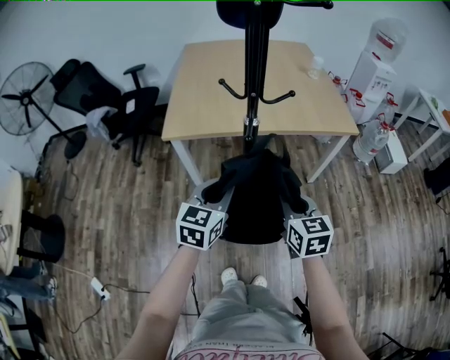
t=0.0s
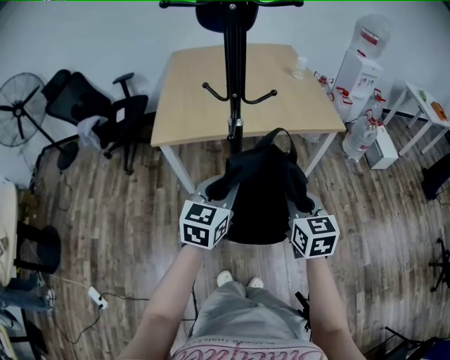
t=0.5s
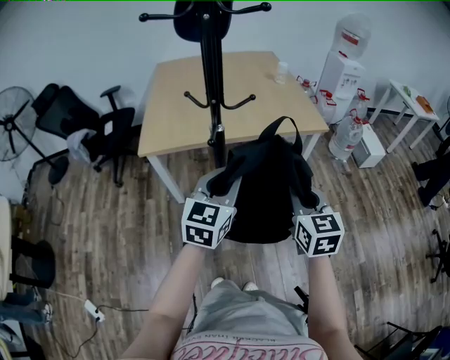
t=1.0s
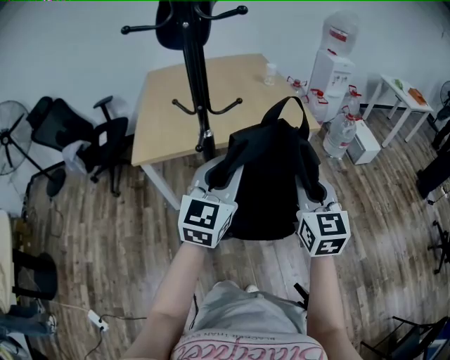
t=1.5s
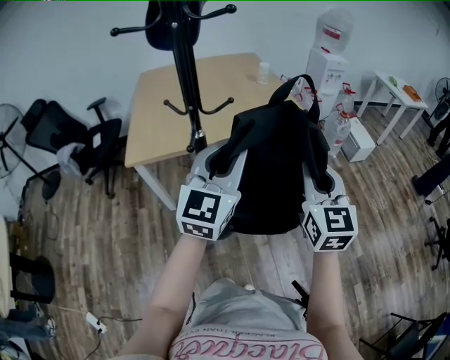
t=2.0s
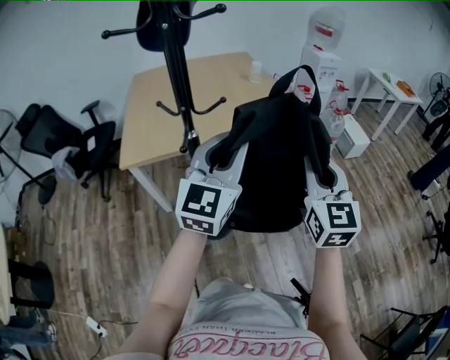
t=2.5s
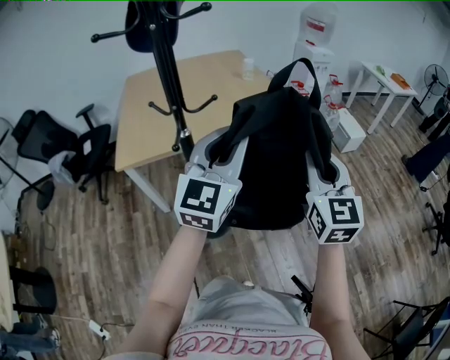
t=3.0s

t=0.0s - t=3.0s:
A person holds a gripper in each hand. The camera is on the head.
t=0.0s - t=1.5s: The two grippers go approximately 20 cm to the right and upward. The right gripper changes its angle by approximately 30 degrees. Meanwhile the left gripper swivels roughly 20 degrees.
t=1.5s - t=3.0s: Both grippers move upward and to the right, some 10 cm.

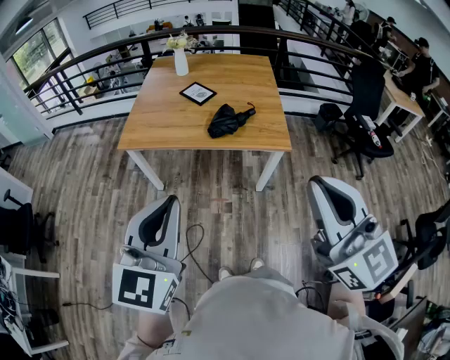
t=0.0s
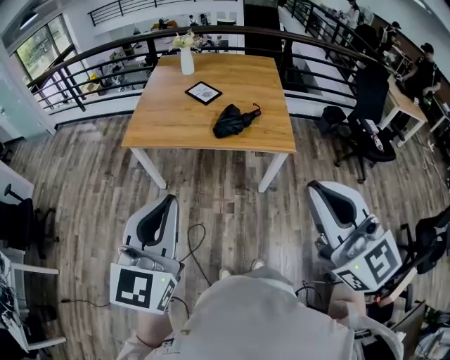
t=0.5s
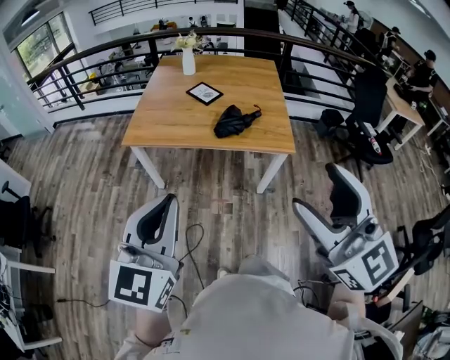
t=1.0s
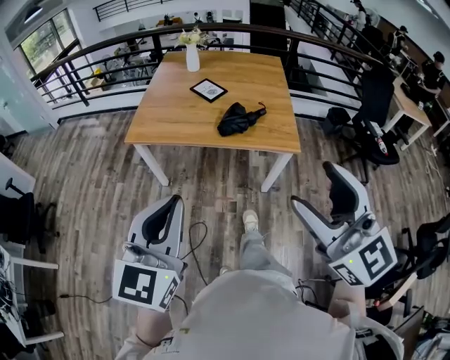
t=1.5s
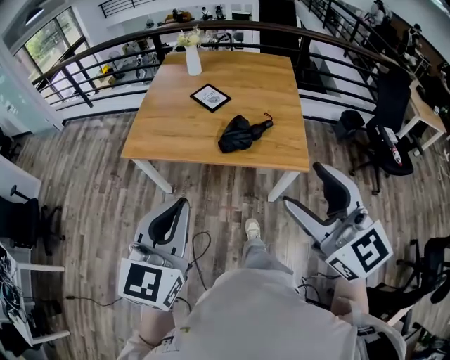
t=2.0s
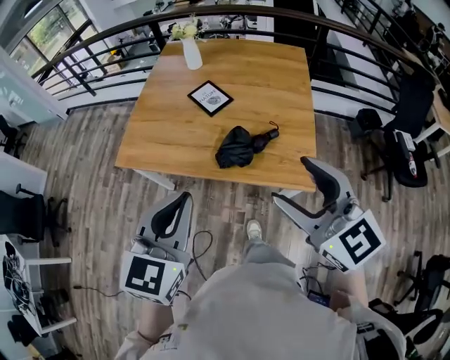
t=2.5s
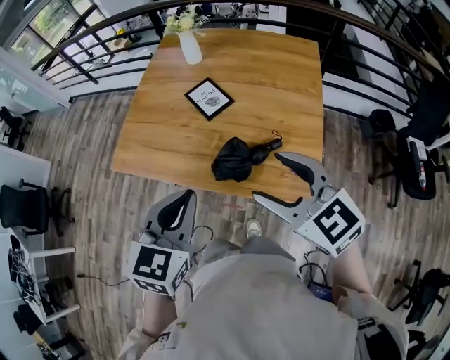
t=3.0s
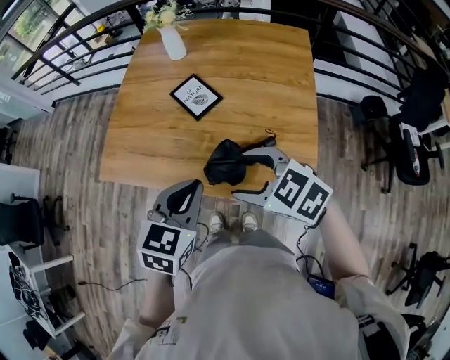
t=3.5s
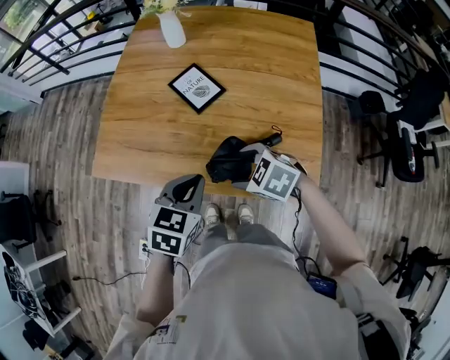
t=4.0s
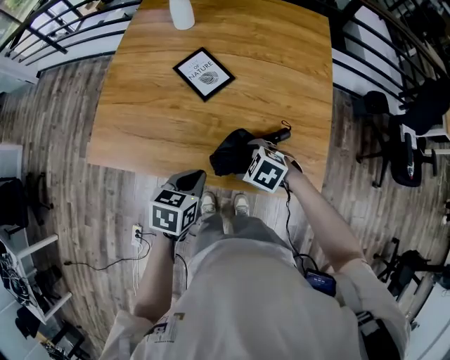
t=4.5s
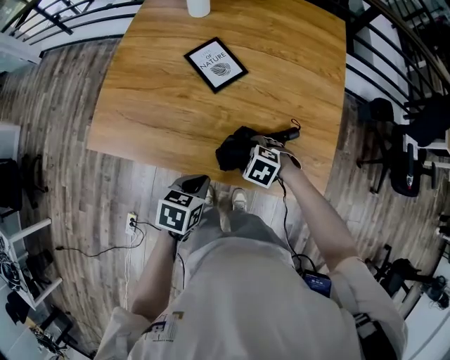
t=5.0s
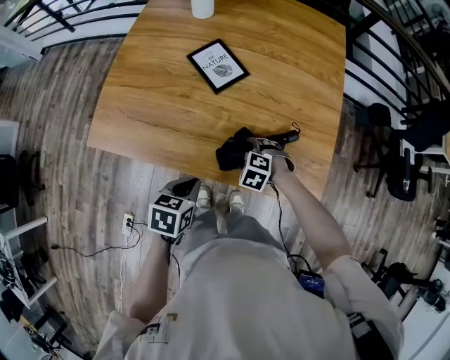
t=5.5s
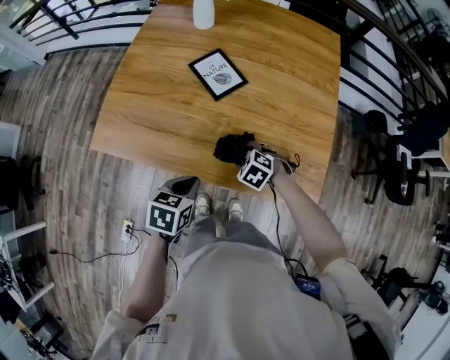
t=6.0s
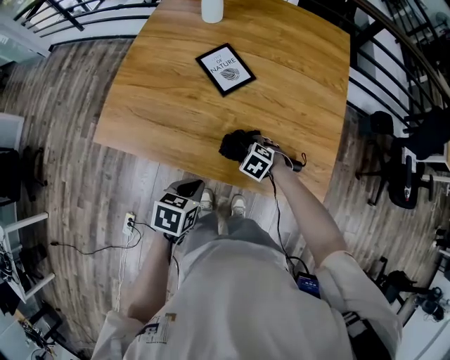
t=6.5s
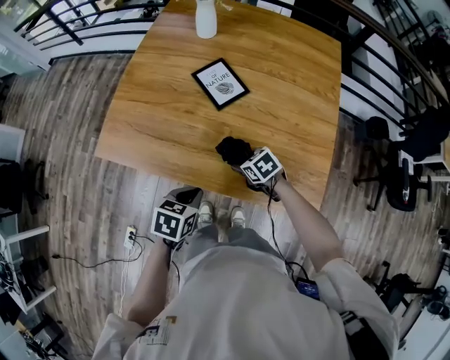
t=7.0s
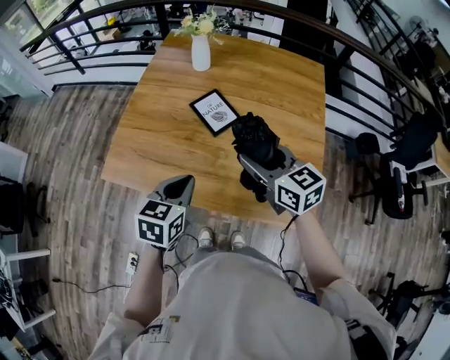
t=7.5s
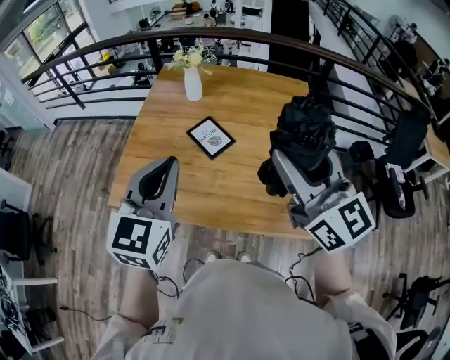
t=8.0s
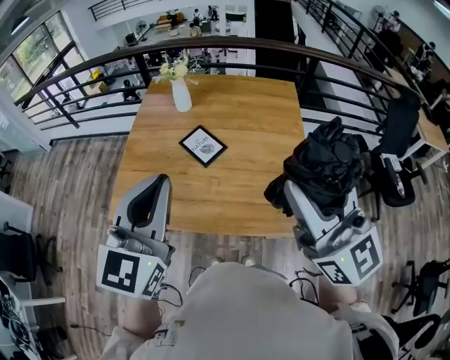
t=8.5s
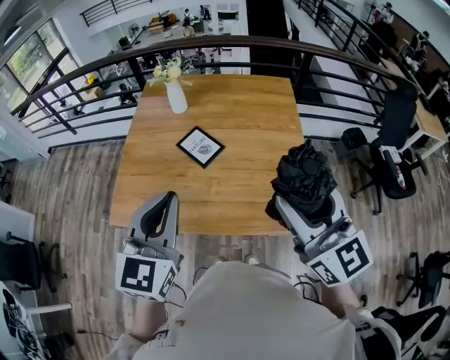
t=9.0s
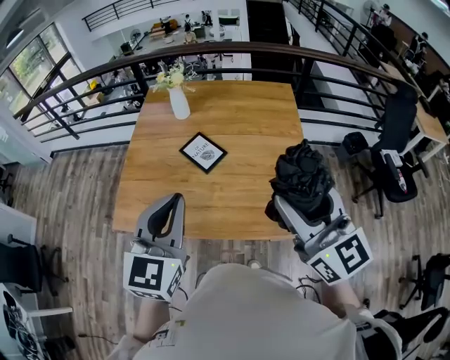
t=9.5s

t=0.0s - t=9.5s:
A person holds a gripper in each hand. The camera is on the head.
t=0.0s - t=2.0s: The grippers both shift forward by roughly 15 cm. The right gripper opens its fingers.
t=2.0s - t=4.0s: The left gripper shifts about 40 cm forward, downward and to the right, and tilts its fingers some 30 degrees downward; the right gripper travels forward and downward by some 50 cm, and angles its fingers downward, by approximately 50 degrees.
t=4.0s - t=5.5s: Both grippers move downward, approximately 15 cm. The right gripper swivels some 30 degrees, while the left gripper swivels about 20 degrees.
t=5.5s - t=7.5s: The left gripper moves upward, some 15 cm, and turns by about 20 degrees, while the right gripper travels upward by some 35 cm, and points its fingers about 60 degrees further upward.
t=7.5s - t=9.5s: The right gripper shifts roughly 25 cm upward and backward, and turns by roughly 30 degrees; the left gripper is displaced upward by about 20 cm, and swivels roughly 30 degrees.

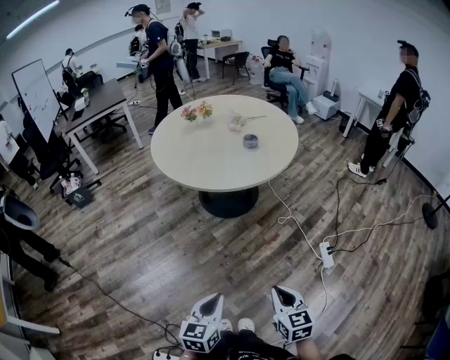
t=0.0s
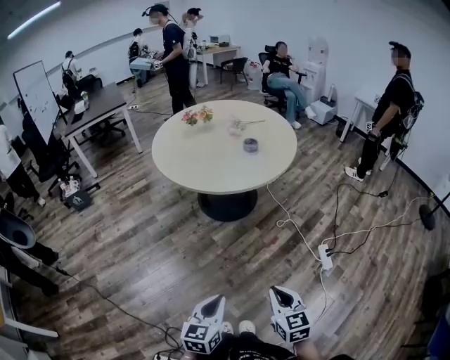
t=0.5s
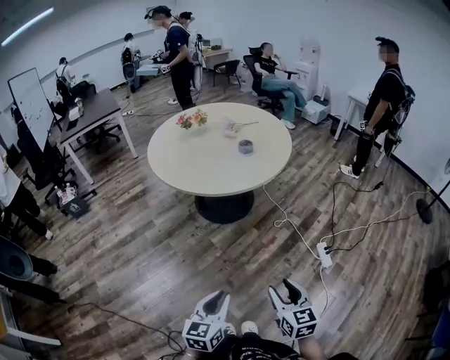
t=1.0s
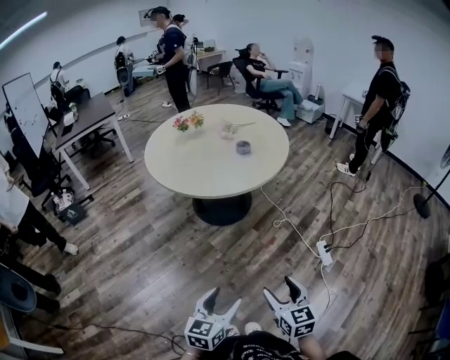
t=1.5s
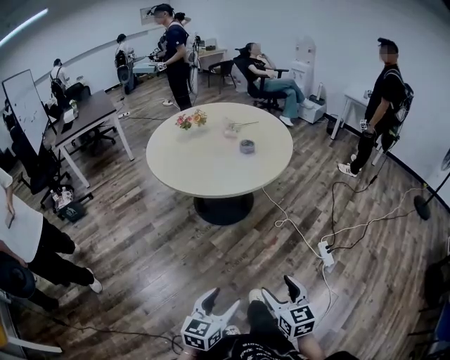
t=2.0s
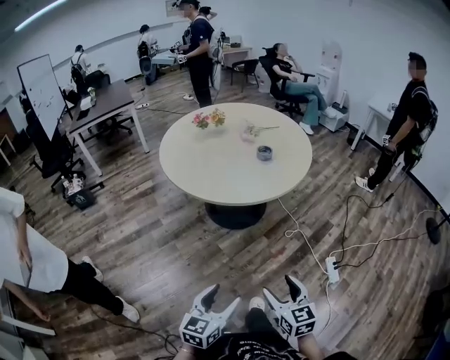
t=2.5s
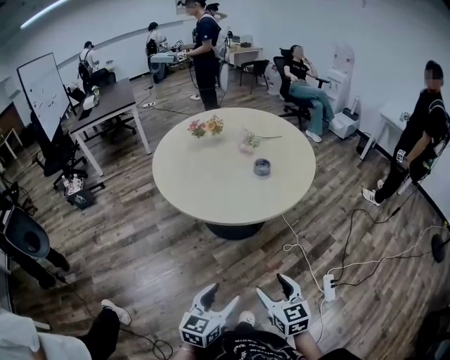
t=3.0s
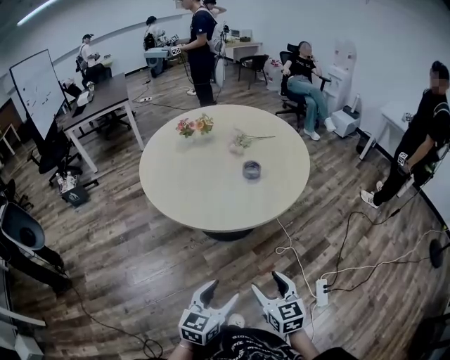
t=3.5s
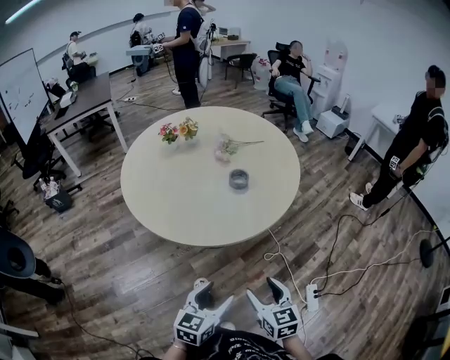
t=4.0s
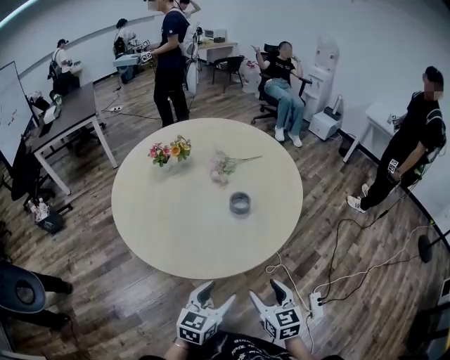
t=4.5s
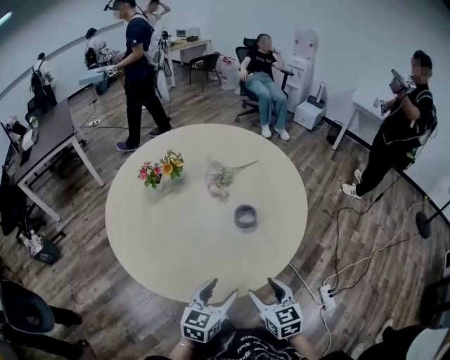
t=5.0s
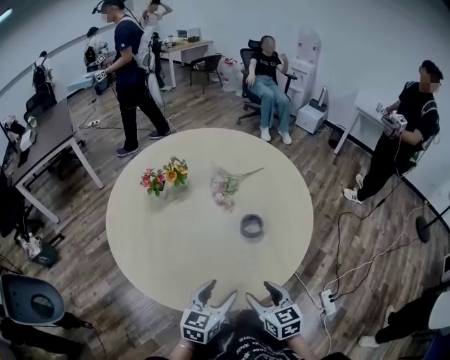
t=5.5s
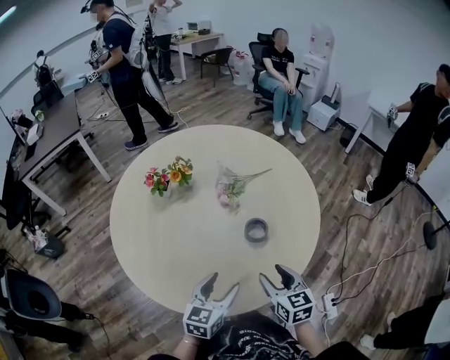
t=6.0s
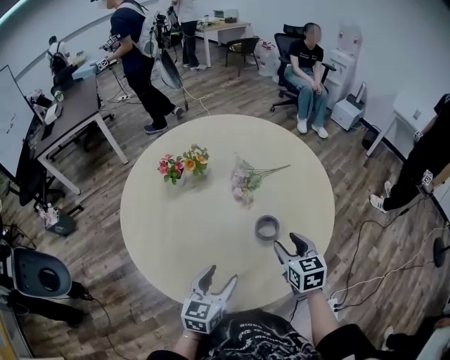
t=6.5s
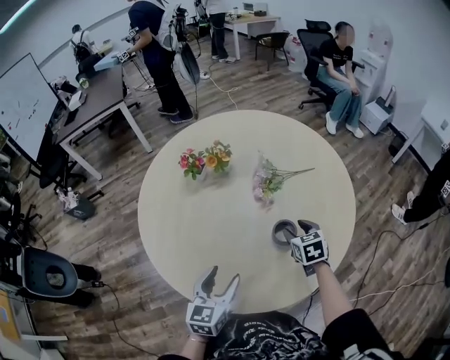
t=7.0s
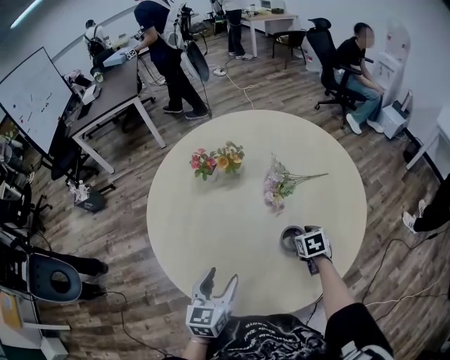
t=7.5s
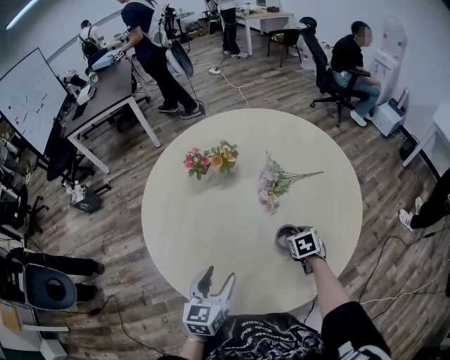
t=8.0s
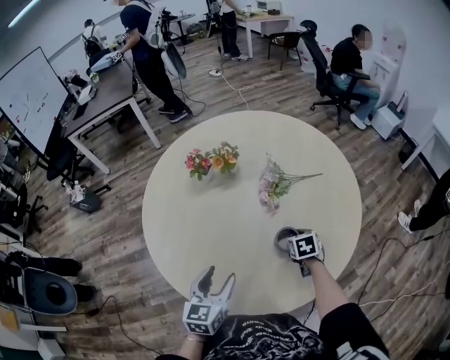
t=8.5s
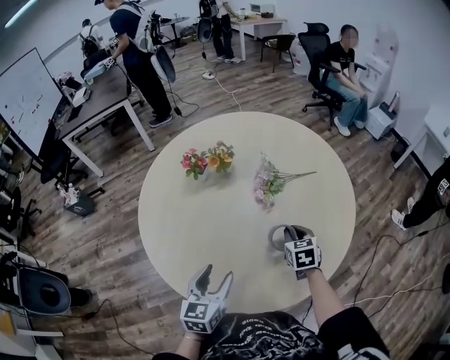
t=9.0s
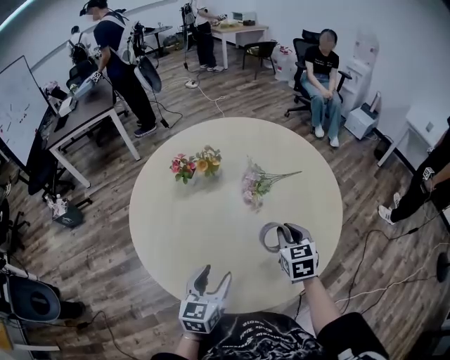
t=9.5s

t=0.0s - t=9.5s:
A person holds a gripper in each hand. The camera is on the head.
t=0.0s - t=2.0s: The right gripper travels to the left by about 5 cm, and opens its fingers. Meanwhile the left gripper opens up.
t=2.0s - t=4.0s: The two grippers go approximately 35 cm forward.
t=4.0s - t=5.5s: The two grippers go some 30 cm forward and to the left.
t=5.5s - t=7.5s: The right gripper shifts about 30 cm forward, and turns by some 30 degrees; the left gripper travels forward by some 10 cm, and changes its angle by approximately 40 degrees.
t=7.5s - t=9.5s: The right gripper is displaced upward and backward by some 15 cm, turns by some 30 degrees, and closes.

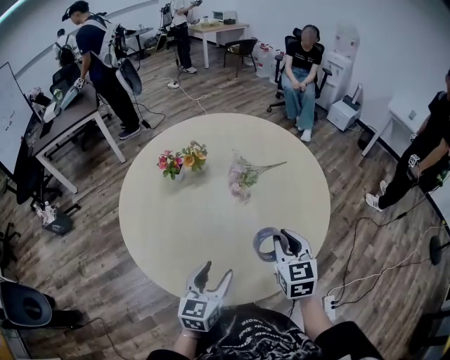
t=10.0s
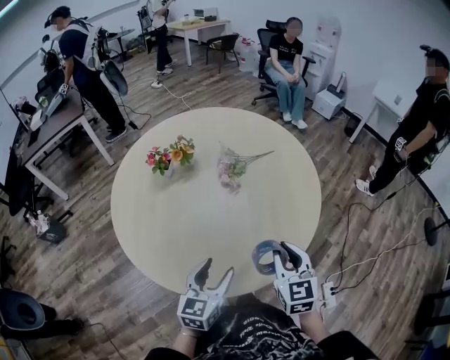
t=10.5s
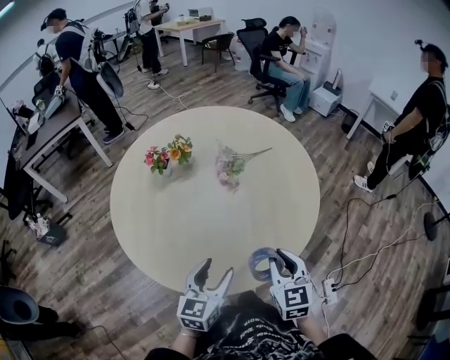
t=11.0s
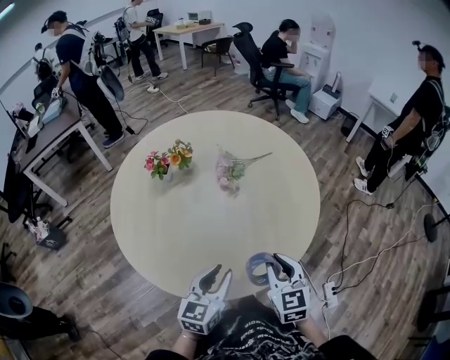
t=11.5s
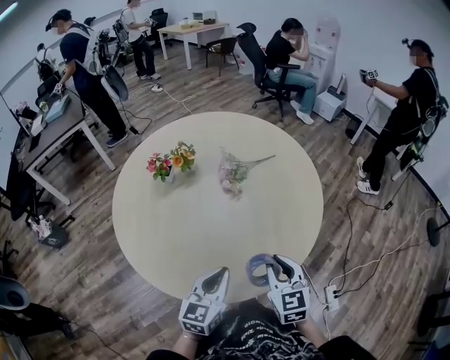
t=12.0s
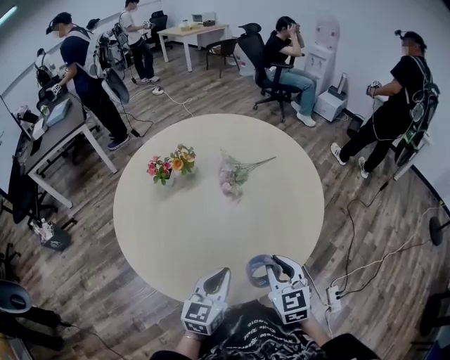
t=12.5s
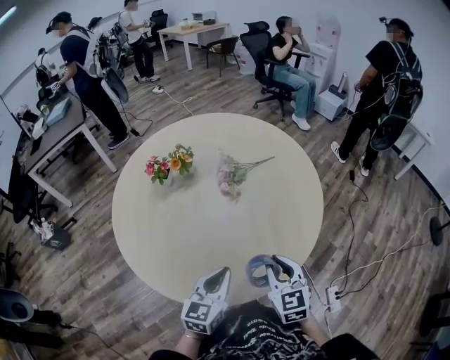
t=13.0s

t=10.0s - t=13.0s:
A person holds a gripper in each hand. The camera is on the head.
t=10.0s - t=11.5s: The left gripper closes its fingers, while the right gripper heads backward, covering roughly 10 cm.
t=11.5s - t=13.0s: The left gripper closes up.

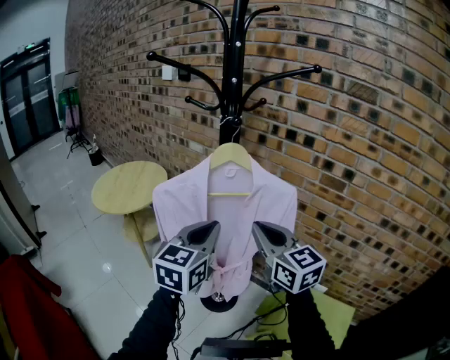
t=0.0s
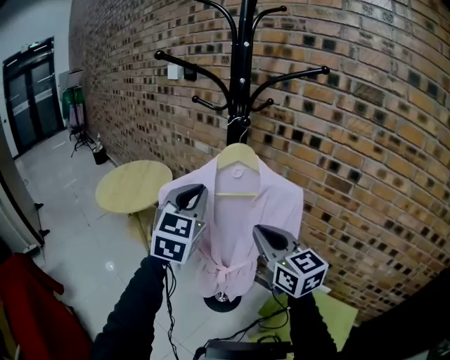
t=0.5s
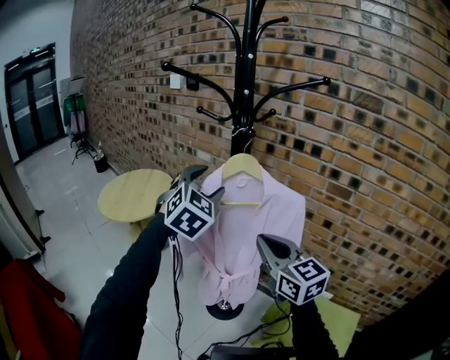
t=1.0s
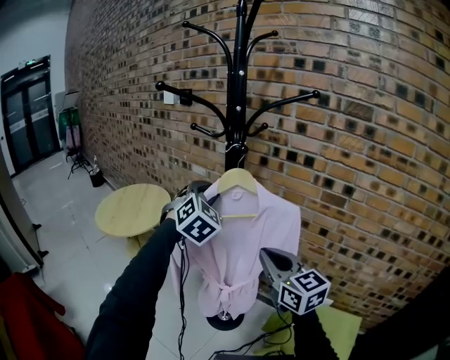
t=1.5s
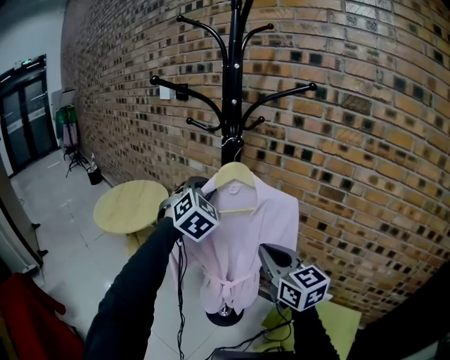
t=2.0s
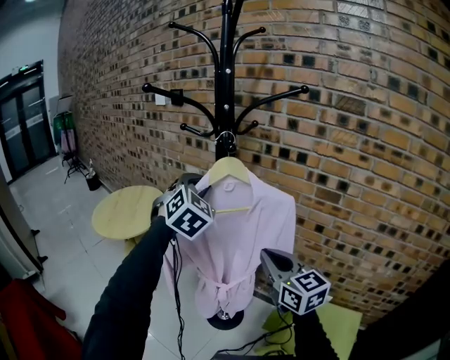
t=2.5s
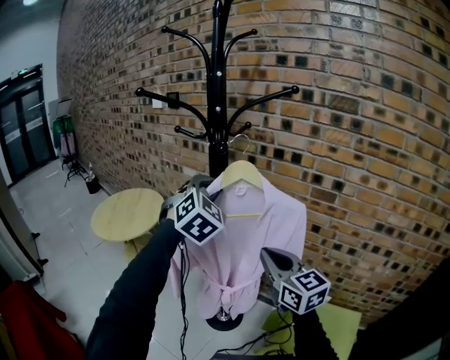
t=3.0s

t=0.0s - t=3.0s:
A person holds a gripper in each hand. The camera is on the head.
t=0.0s - t=1.5s: The left gripper shifts some 15 cm forward and upward, twists roughly 50 degrees clockwise, seen from behind, and opens up.
t=1.5s - t=3.0s: The left gripper heads to the right, covering about 5 cm.
